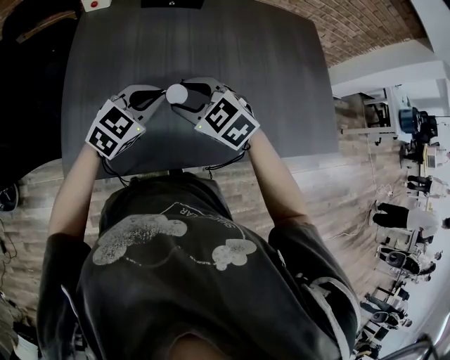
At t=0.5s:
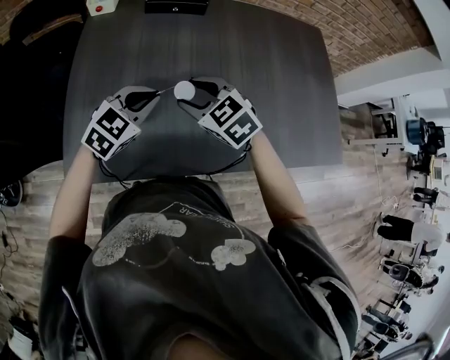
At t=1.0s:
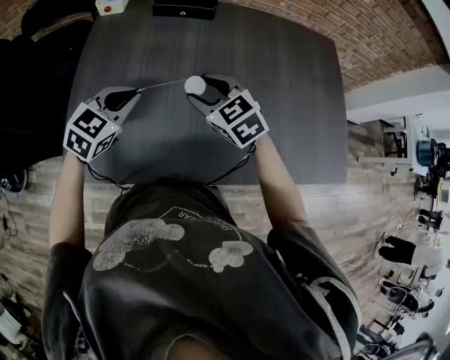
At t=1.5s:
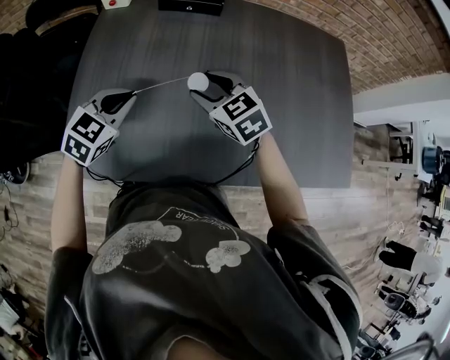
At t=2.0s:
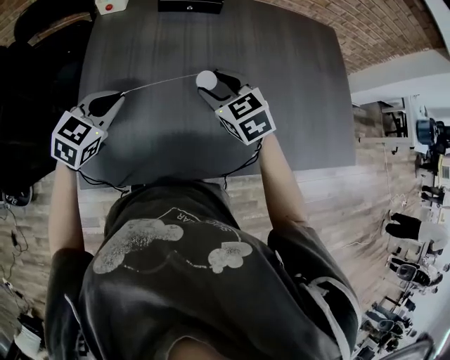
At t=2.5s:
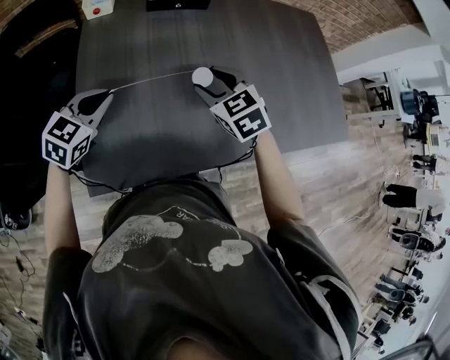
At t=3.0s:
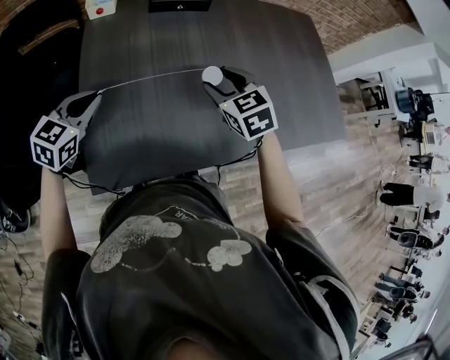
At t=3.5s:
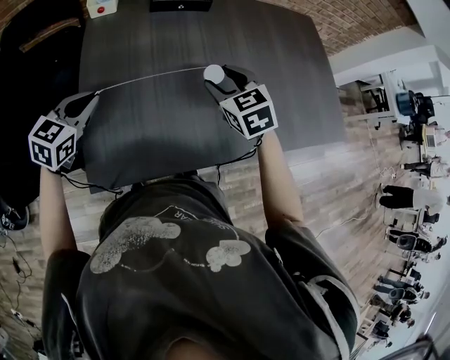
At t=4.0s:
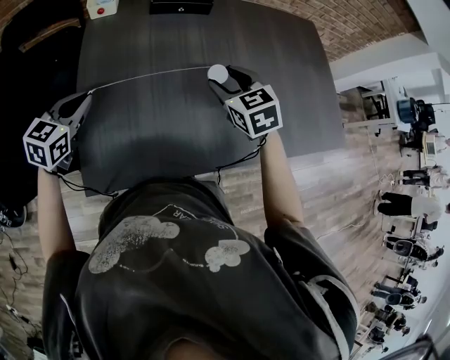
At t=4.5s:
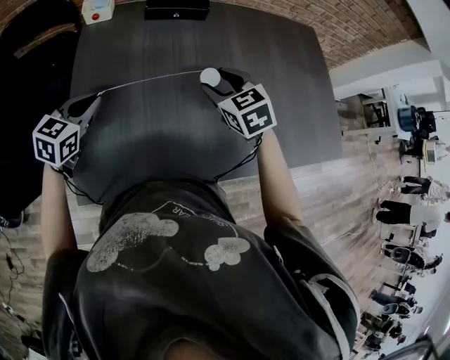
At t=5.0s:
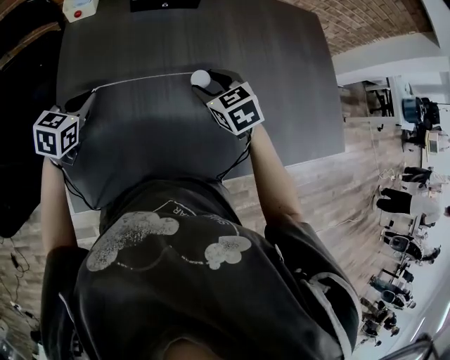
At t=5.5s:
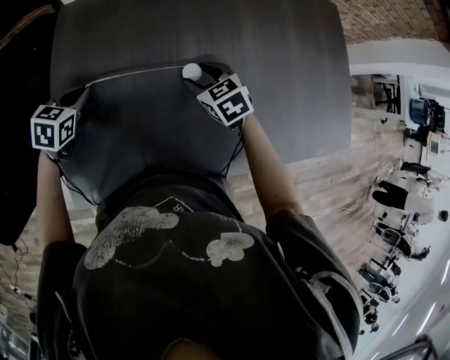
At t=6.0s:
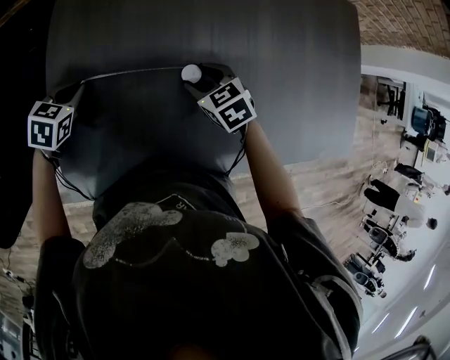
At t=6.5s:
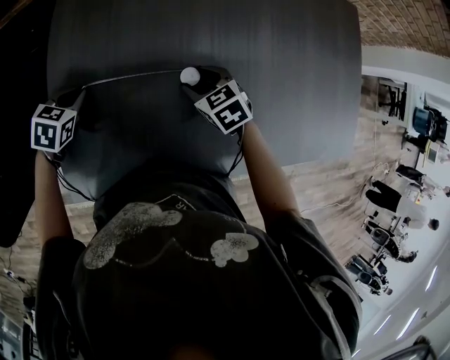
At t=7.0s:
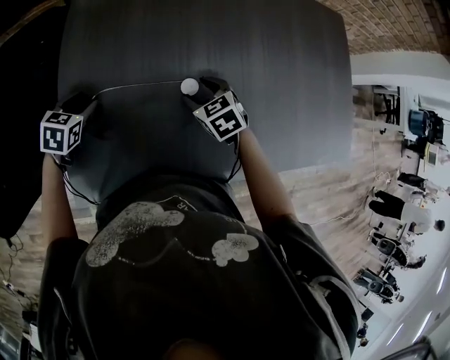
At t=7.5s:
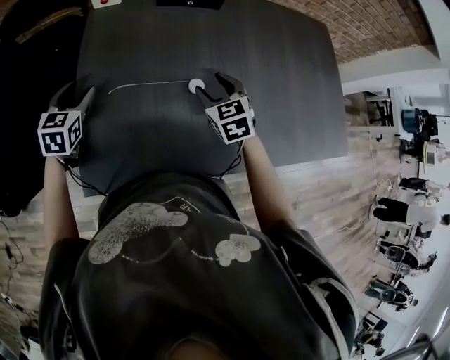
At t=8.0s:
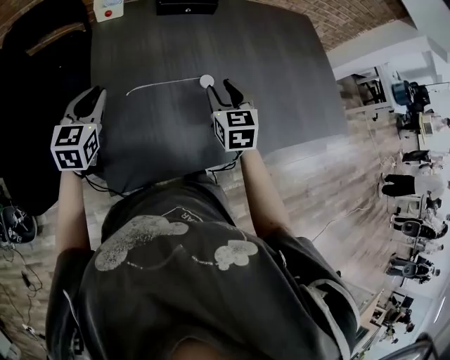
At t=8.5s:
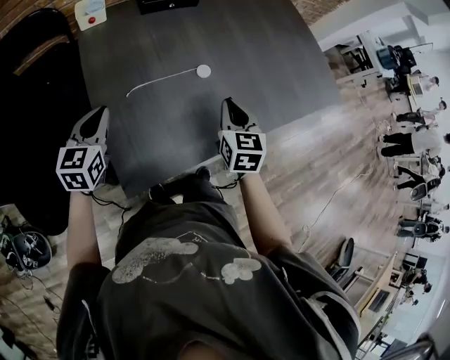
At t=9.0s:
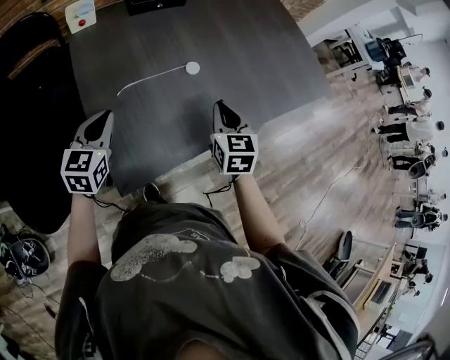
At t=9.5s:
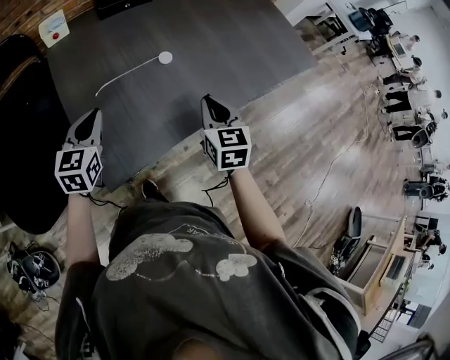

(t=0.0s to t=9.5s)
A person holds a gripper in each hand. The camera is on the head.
t=0.0s - t=2.0s: The right gripper is displaced forward by about 10 cm; the left gripper shifts some 15 cm to the left.
t=2.0s - t=4.0s: The left gripper heads to the left, covering some 10 cm.
t=4.0s - t=5.5s: The grippers both shift downward and forward by about 15 cm. The left gripper turns by roughly 20 degrees.
t=5.5s - t=7.5s: The left gripper goes approximately 10 cm to the left and upward, changes its angle by some 20 degrees, and opens, while the right gripper moves upward, approximately 5 cm.
t=7.5s - t=9.5s: The left gripper changes place by about 15 cm, rotates some 30 degrees, and closes. The right gripper ends up some 25 cm from where it was, rotates roughly 40 degrees, and closes up.

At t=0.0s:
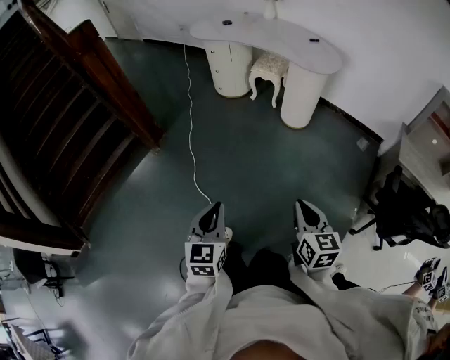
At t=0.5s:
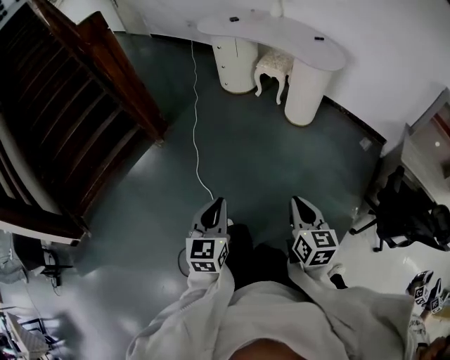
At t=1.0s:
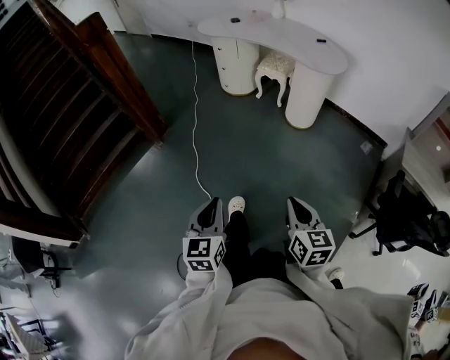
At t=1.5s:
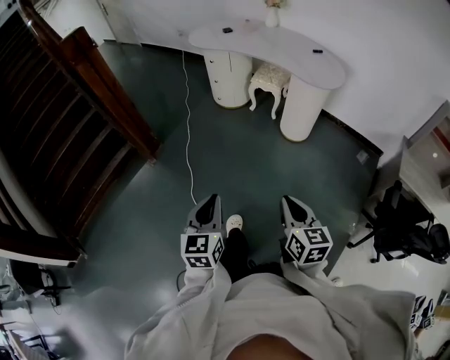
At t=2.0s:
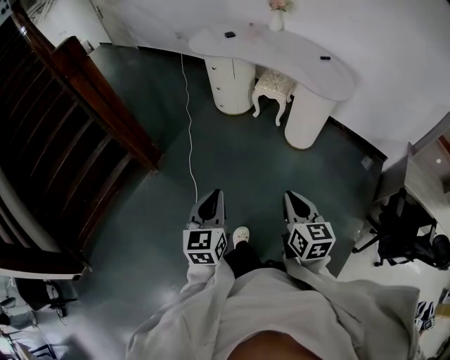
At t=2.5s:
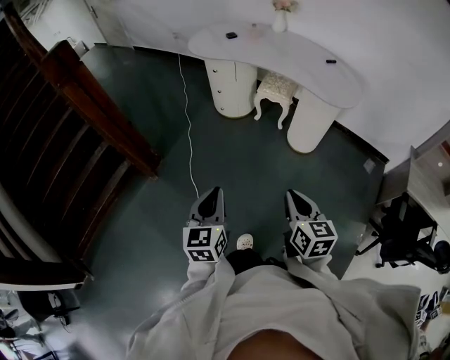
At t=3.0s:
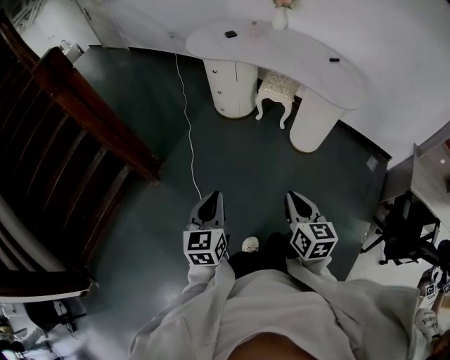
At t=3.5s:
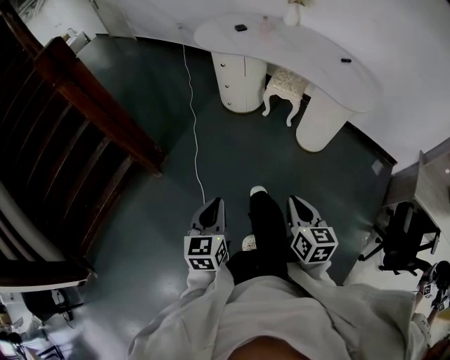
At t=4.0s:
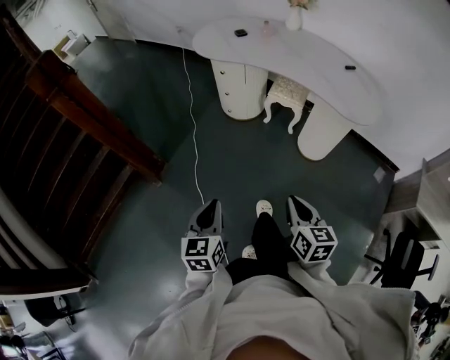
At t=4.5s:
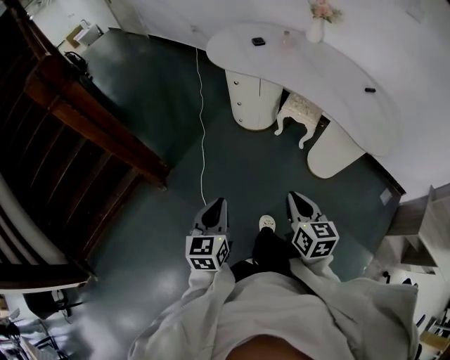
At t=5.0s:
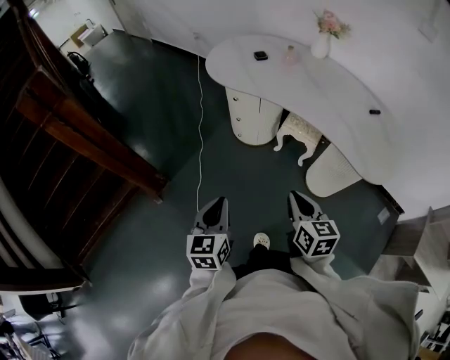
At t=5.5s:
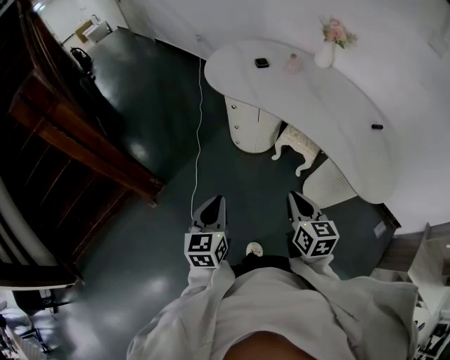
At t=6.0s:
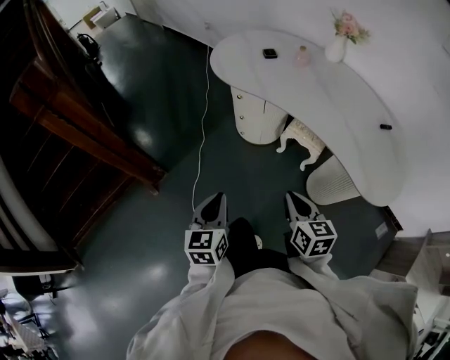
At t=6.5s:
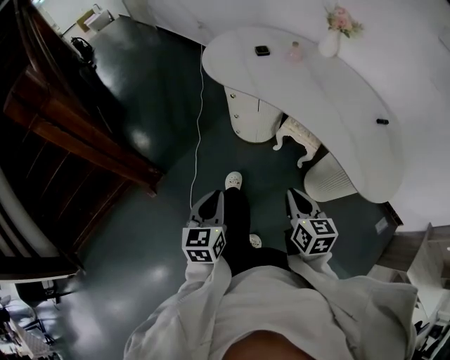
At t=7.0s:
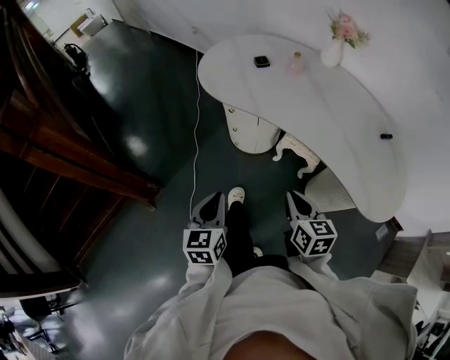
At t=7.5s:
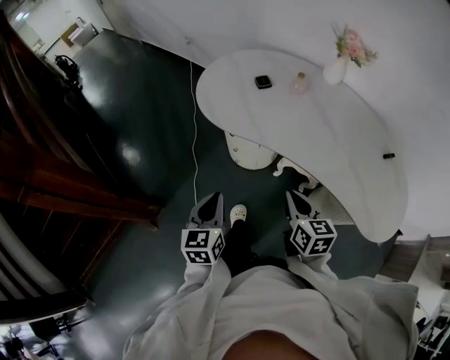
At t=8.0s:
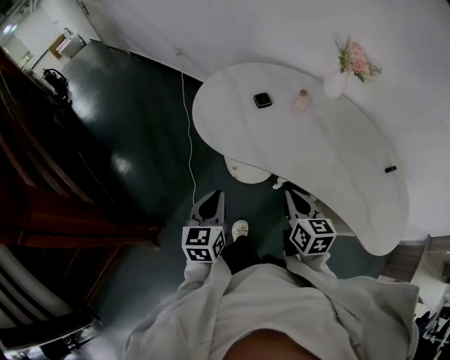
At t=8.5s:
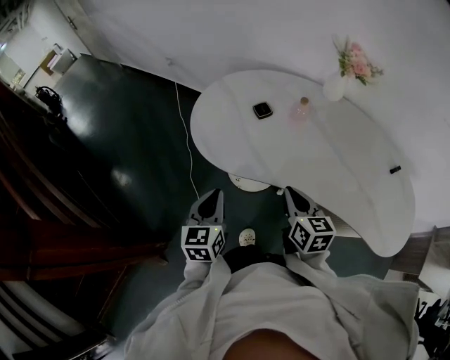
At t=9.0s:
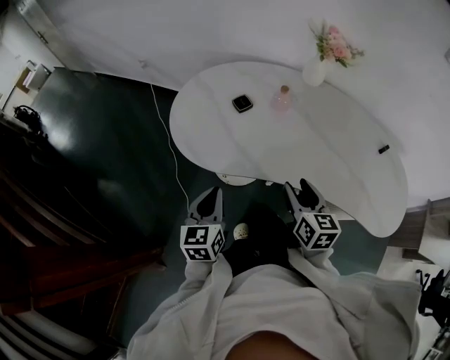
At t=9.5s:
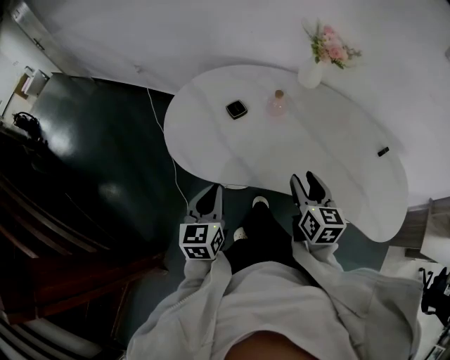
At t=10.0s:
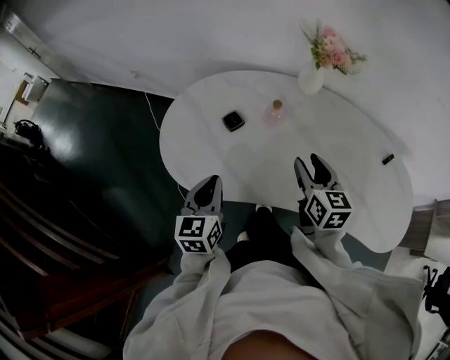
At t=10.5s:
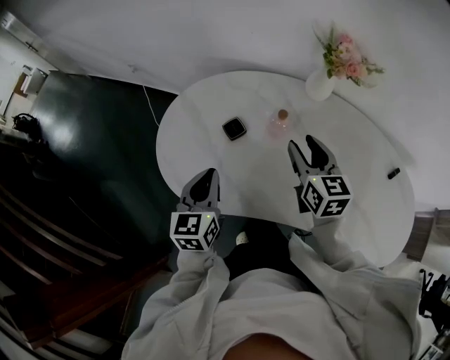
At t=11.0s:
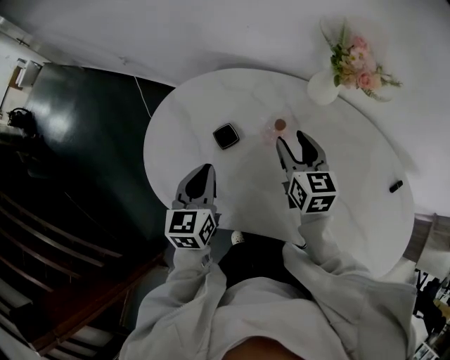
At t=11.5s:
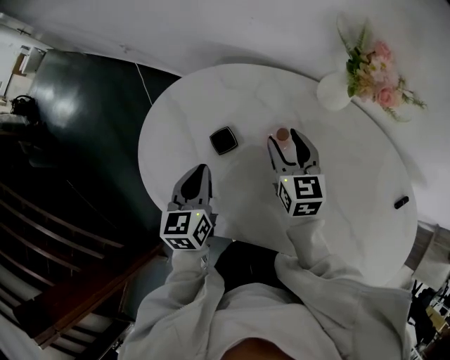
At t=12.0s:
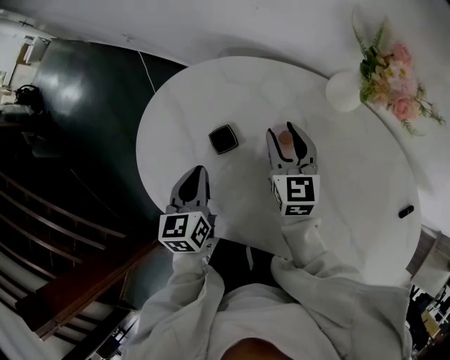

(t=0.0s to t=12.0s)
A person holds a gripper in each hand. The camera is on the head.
t=0.0s - t=2.0s: Both grippers travel together forward, some 20 cm.
t=2.0s - t=4.0s: The two grippers go roughly 15 cm forward.
t=4.0s - t=6.0s: The two grippers go some 25 cm forward.
t=6.0s - t=8.0s: The grippers both shift forward by some 30 cm.
t=8.0s - t=10.0s: The left gripper is displaced forward by about 20 cm, while the right gripper heads forward and to the right, covering roughly 20 cm, and opens.
t=10.0s - t=12.0s: The left gripper is displaced forward and downward by some 15 cm; the right gripper travels forward by approximately 25 cm.

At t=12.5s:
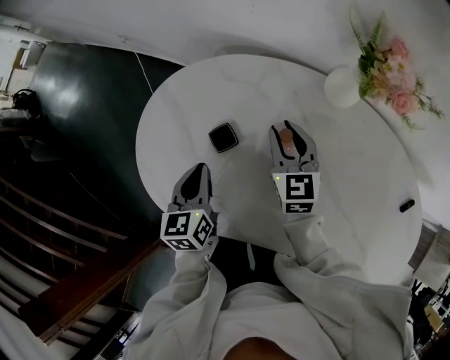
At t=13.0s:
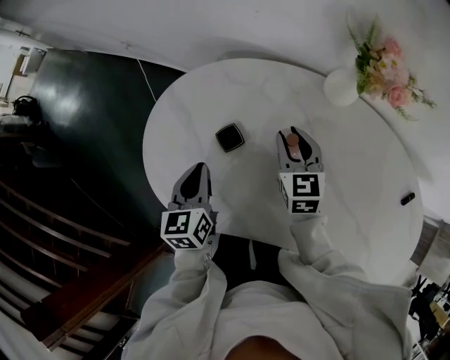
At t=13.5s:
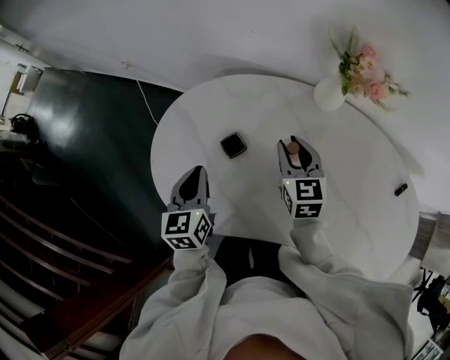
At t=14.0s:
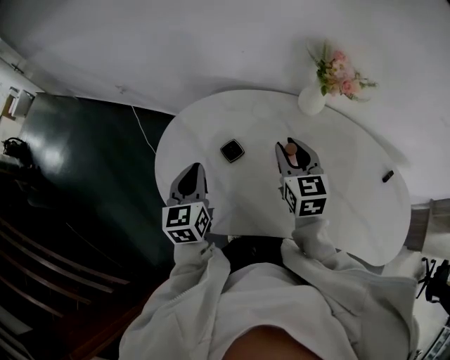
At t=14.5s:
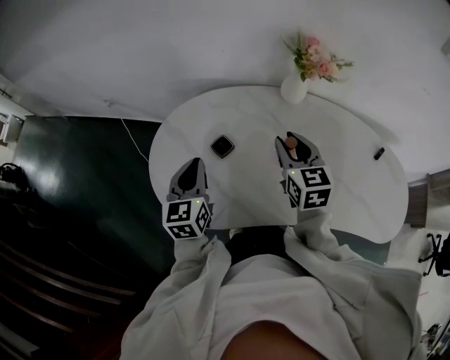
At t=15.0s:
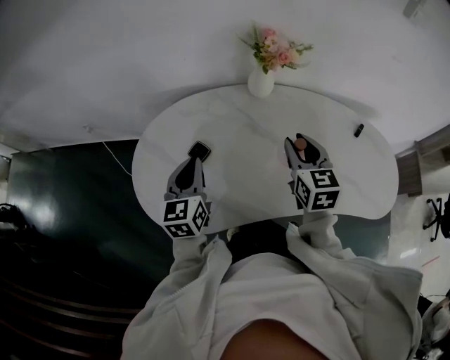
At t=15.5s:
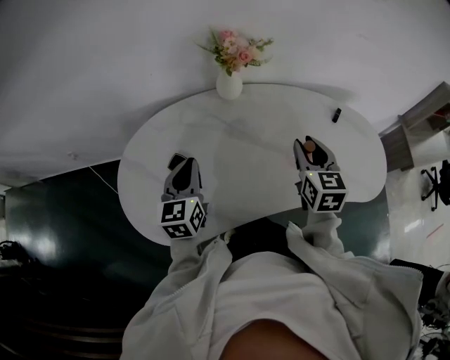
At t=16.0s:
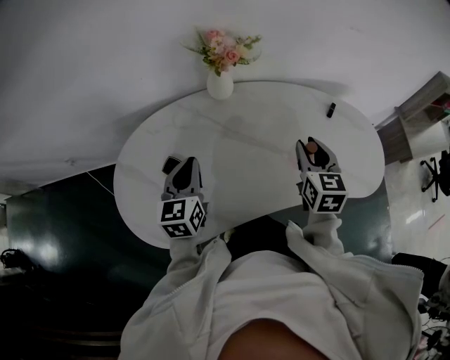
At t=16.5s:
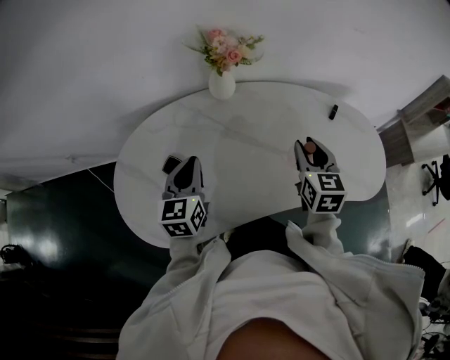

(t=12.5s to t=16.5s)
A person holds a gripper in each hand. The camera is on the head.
t=12.5s - t=14.5s: The left gripper goes approximately 10 cm upward, and swivels some 20 degrees, while the right gripper goes about 15 cm upward and backward.
t=14.5s - t=16.5s: The left gripper ends up approximately 15 cm from where it was, and changes its angle by roughly 20 degrees. The right gripper ends up approximately 25 cm from where it was, and changes its angle by approximately 30 degrees.

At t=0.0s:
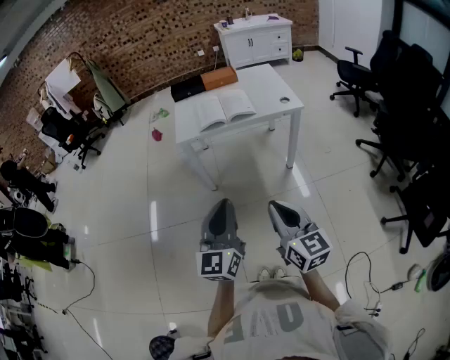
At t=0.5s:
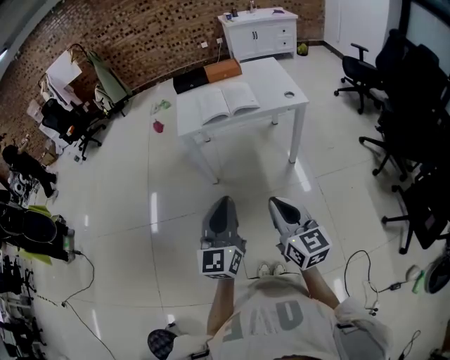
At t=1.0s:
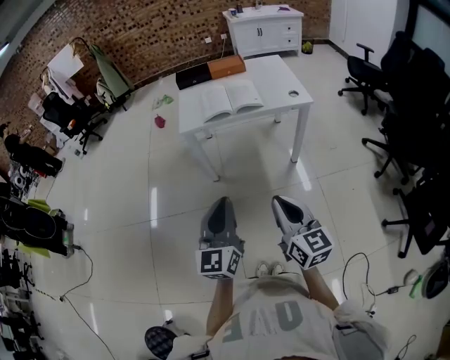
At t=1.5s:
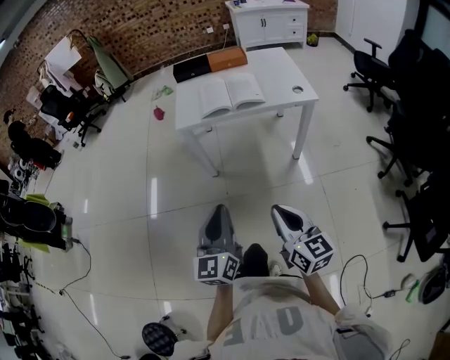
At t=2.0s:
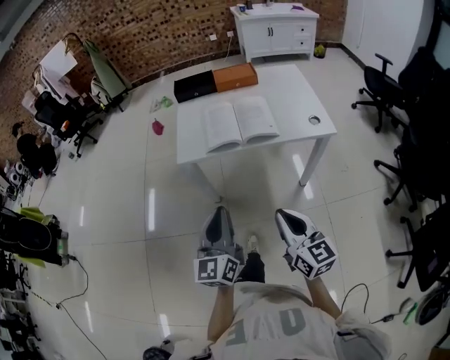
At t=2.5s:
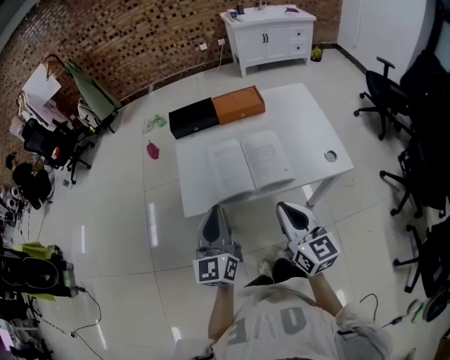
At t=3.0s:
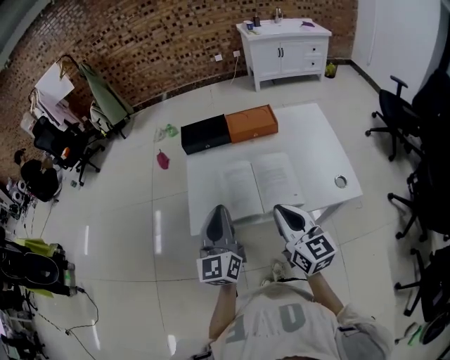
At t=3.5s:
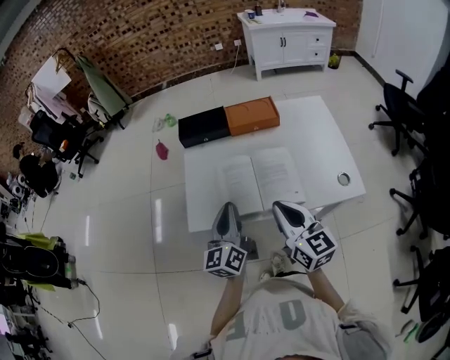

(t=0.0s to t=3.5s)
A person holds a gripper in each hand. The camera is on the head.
t=0.0s - t=2.0s: The two grippers go approximately 25 cm forward.
t=2.0s - t=3.5s: The two grippers go about 35 cm forward.
